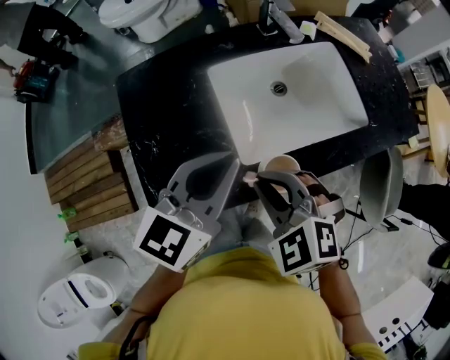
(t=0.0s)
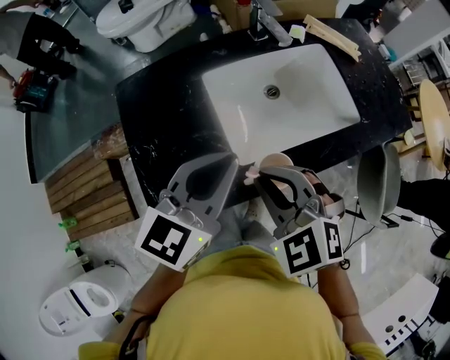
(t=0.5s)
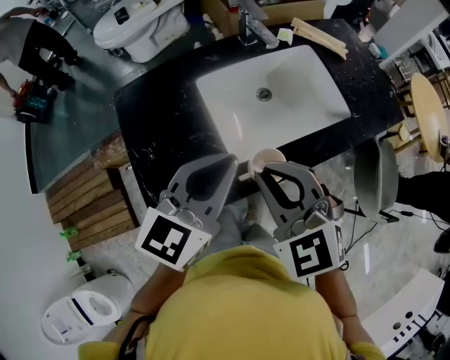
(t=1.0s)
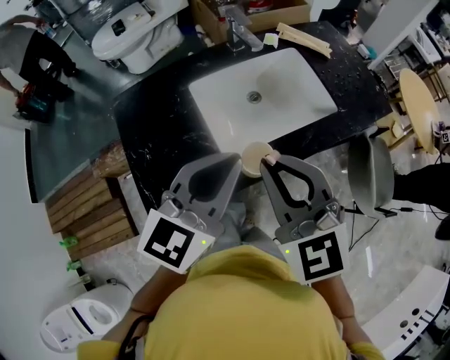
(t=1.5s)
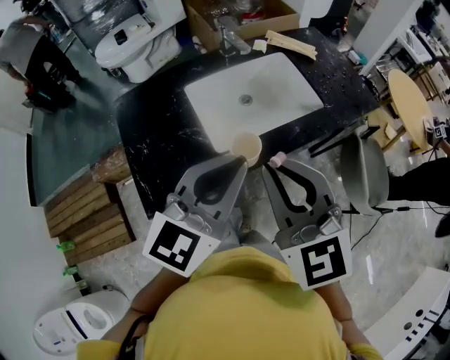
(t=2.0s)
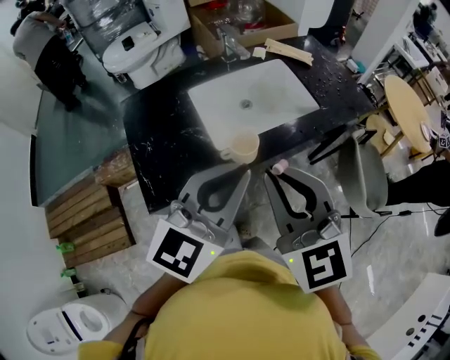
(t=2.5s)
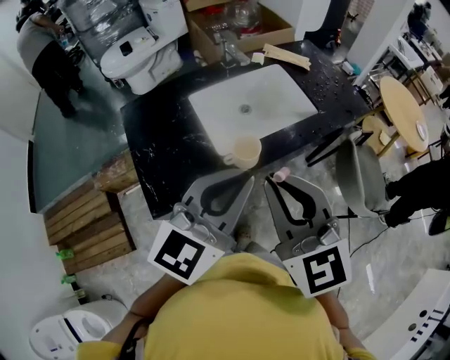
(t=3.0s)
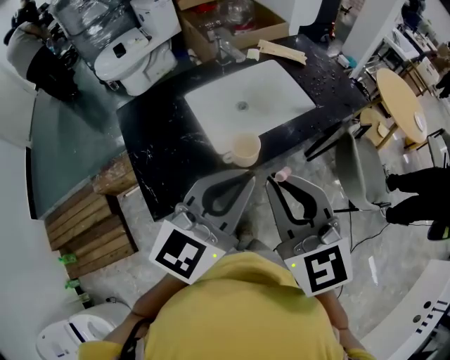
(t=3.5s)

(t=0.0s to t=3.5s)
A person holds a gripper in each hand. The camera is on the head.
t=0.0s - t=2.0s: The left gripper is displaced backward, upward and to the right by some 15 cm. The right gripper moves upward, to the right and backward, roughly 20 cm, and tilts its fingers approximately 40 degrees upward.
t=2.0s - t=3.5s: The left gripper ends up some 5 cm from where it was.

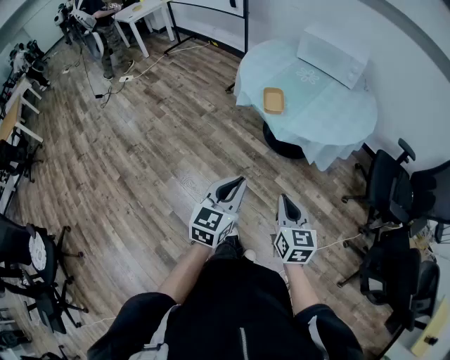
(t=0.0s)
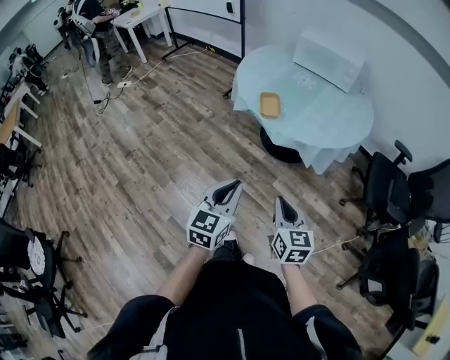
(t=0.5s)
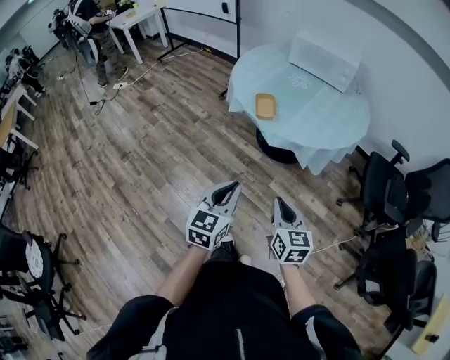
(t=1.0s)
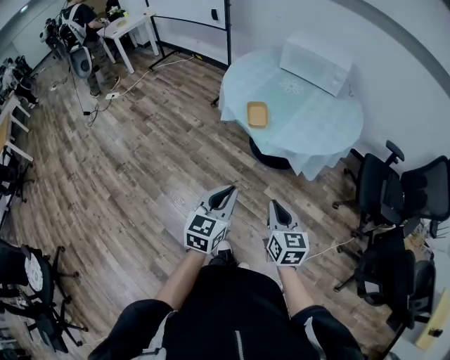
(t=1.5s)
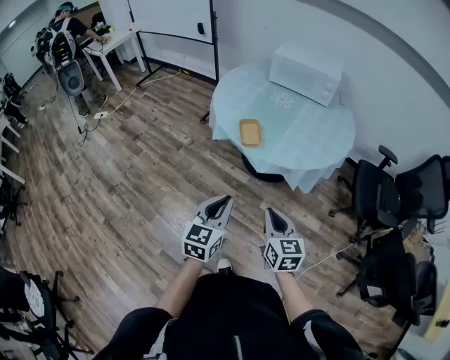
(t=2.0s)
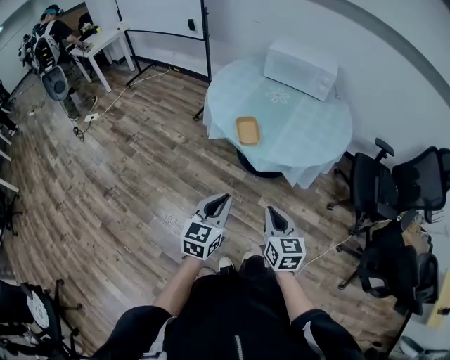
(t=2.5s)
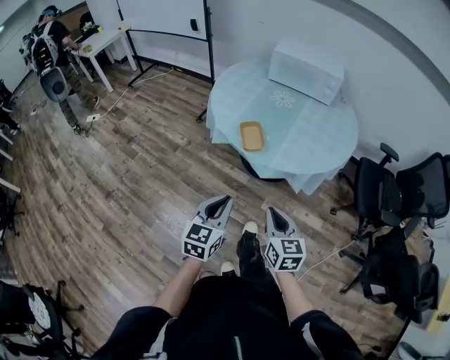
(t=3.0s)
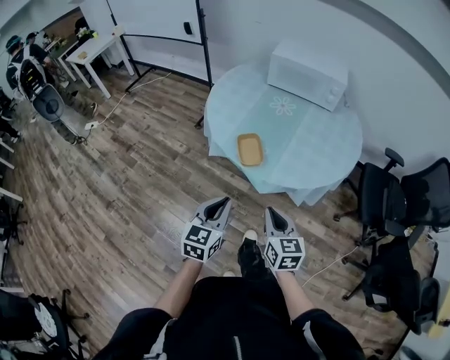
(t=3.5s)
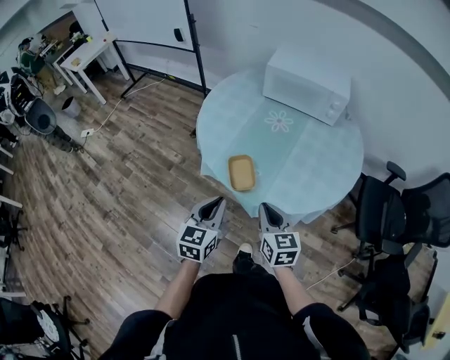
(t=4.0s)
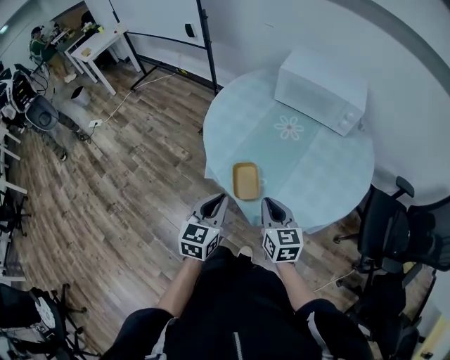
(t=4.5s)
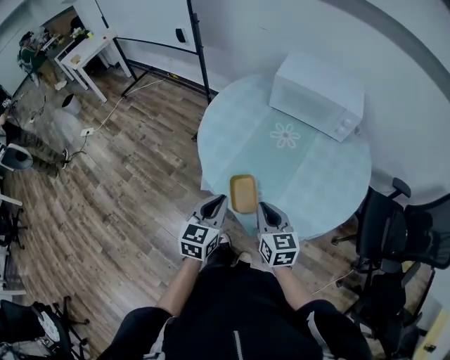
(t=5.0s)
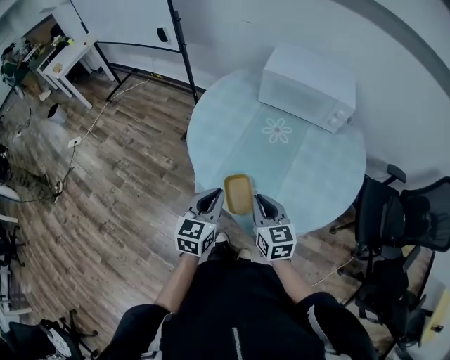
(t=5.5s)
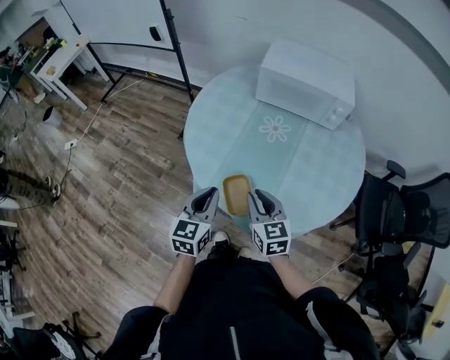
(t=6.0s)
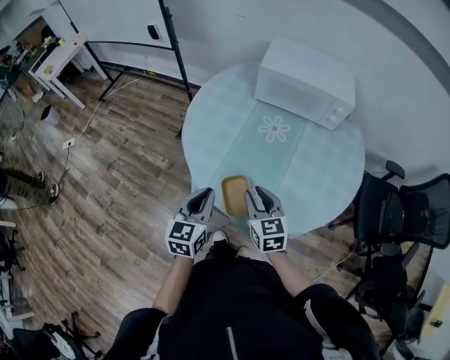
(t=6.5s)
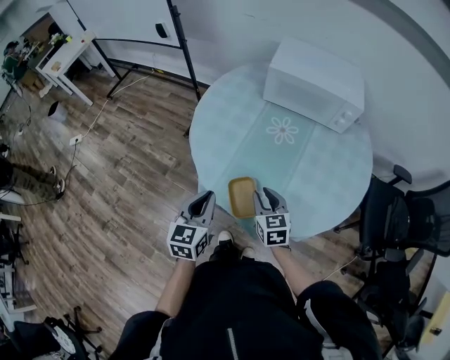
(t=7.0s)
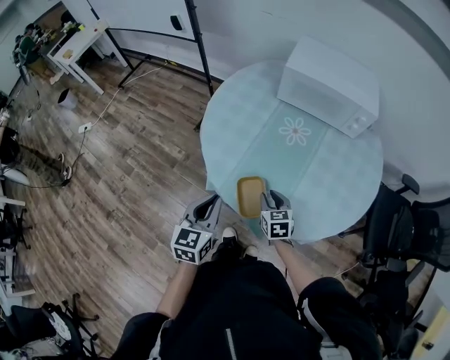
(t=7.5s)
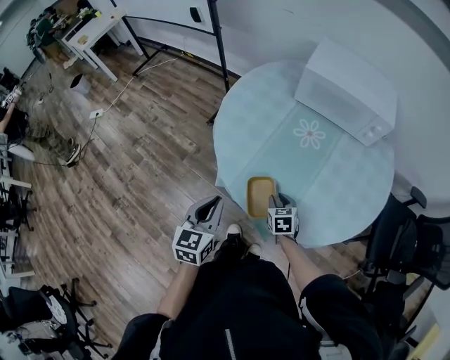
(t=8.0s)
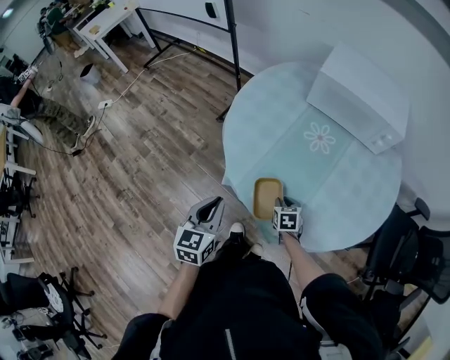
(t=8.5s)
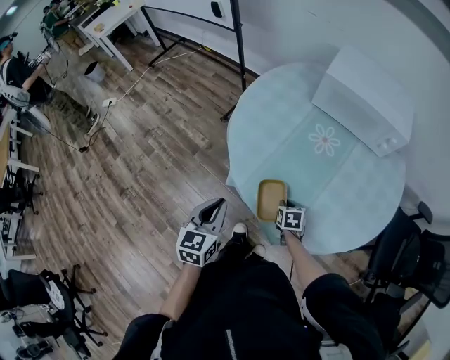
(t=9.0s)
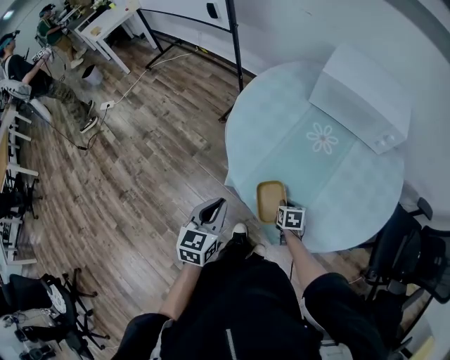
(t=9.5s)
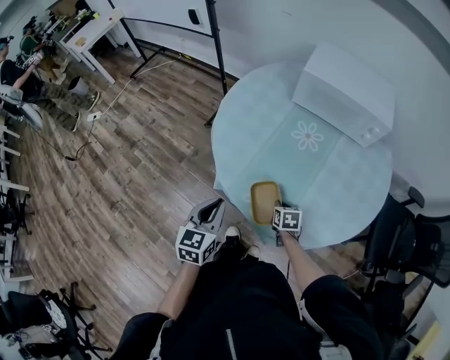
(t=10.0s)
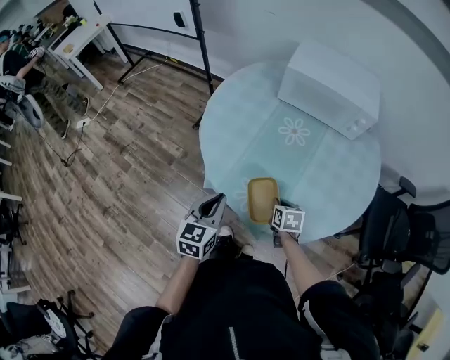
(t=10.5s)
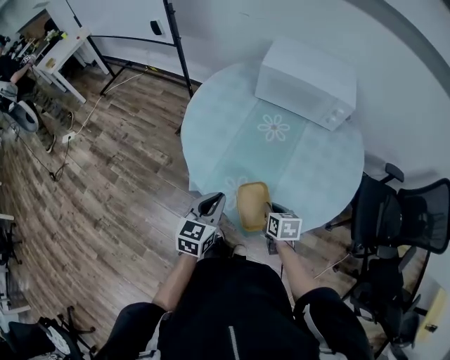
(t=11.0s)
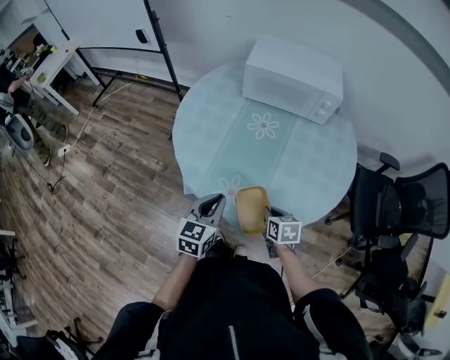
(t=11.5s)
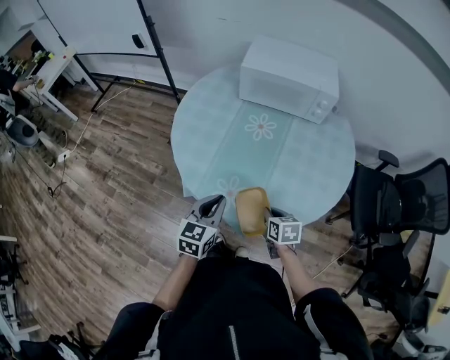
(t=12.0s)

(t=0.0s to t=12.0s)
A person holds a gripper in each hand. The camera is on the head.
t=0.0s - t=2.0s: Both grippers move forward, approximately 10 cm.
t=2.0s - t=4.0s: The grippers both shift forward by roughly 30 cm.
t=4.0s - t=6.0s: The grippers both shift forward by some 15 cm.
t=6.0s - t=8.0s: The right gripper travels downward by approximately 20 cm, and swivels approximately 30 degrees. Meanwhile the left gripper moves to the left, some 5 cm.
t=8.0s - t=10.0s: There are only small adjustments of the grippers.
t=10.0s - t=12.0s: The left gripper heads to the right, covering about 10 cm. The right gripper travels upward, backward and to the right by some 15 cm.

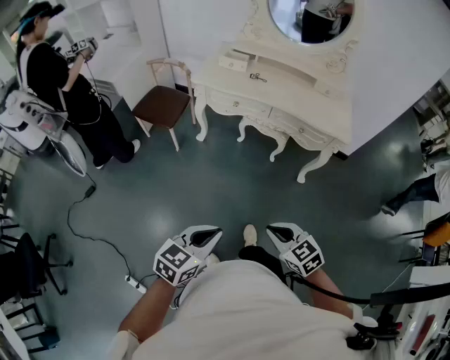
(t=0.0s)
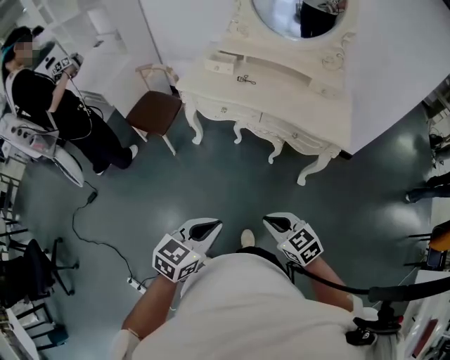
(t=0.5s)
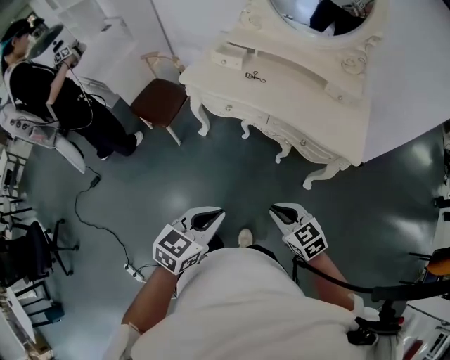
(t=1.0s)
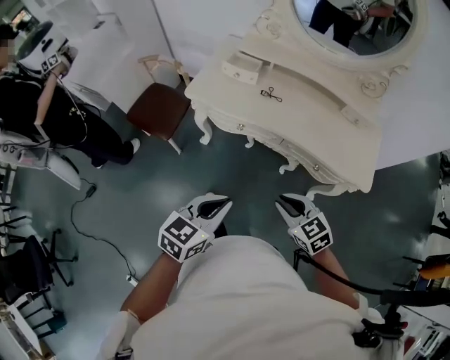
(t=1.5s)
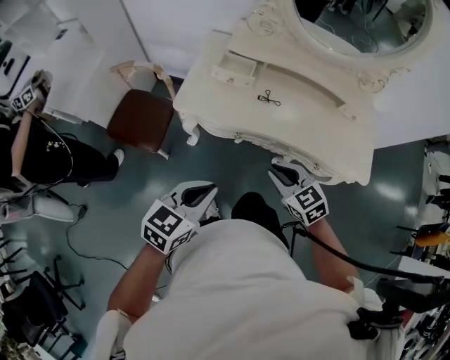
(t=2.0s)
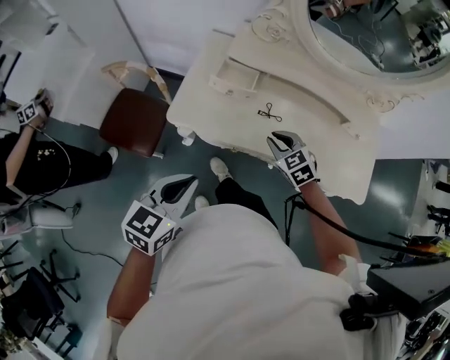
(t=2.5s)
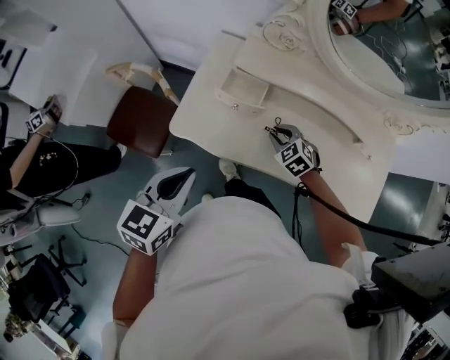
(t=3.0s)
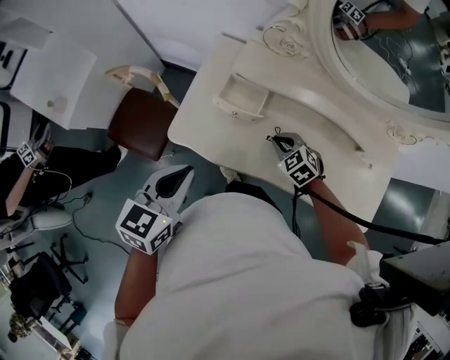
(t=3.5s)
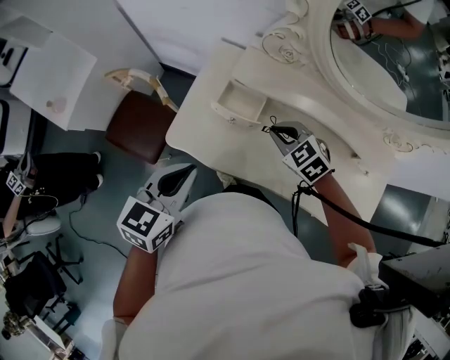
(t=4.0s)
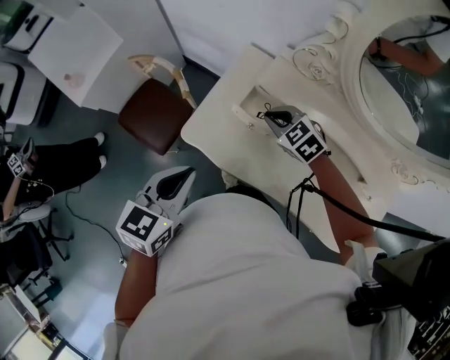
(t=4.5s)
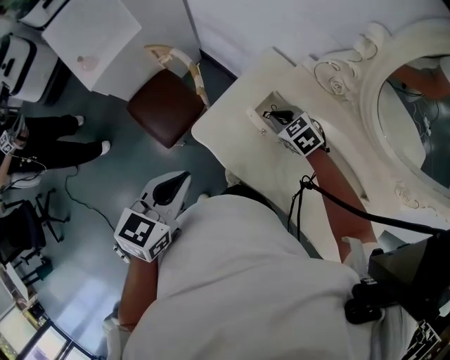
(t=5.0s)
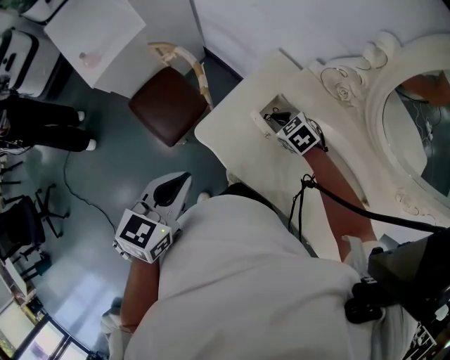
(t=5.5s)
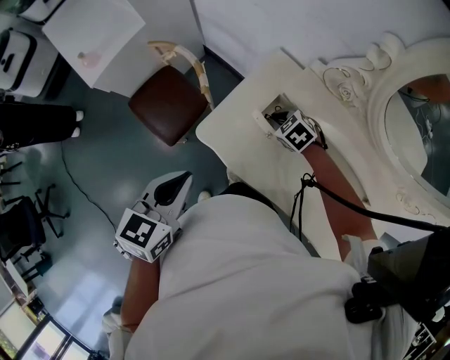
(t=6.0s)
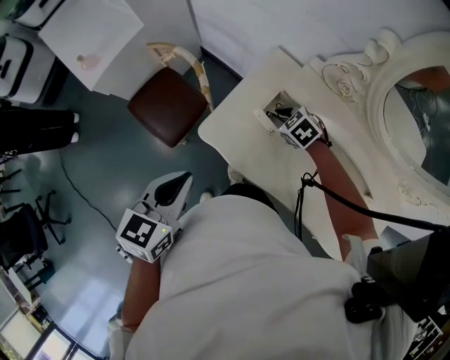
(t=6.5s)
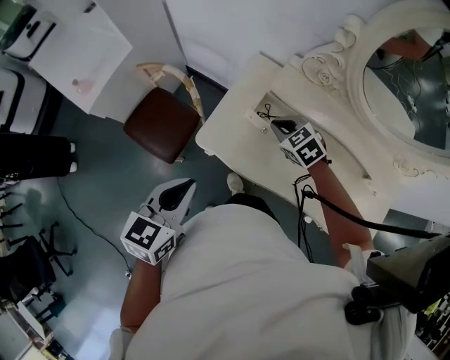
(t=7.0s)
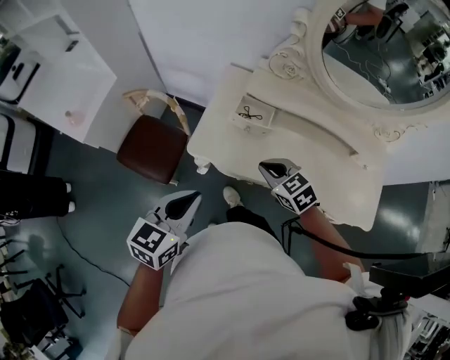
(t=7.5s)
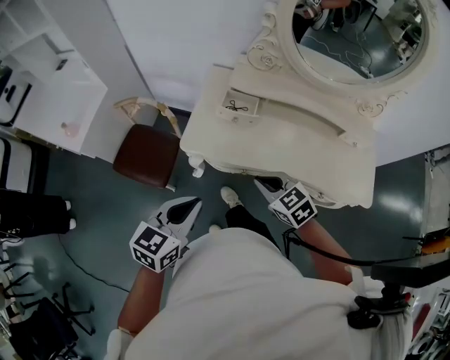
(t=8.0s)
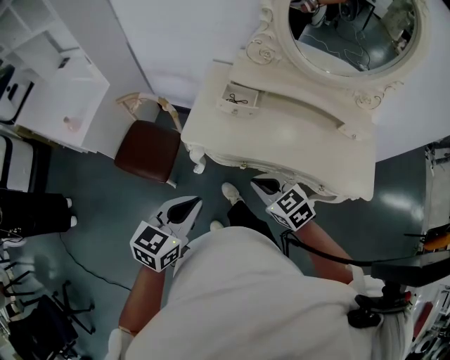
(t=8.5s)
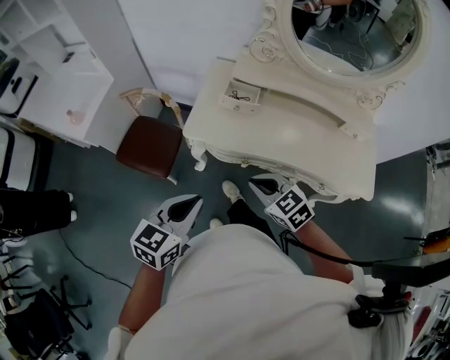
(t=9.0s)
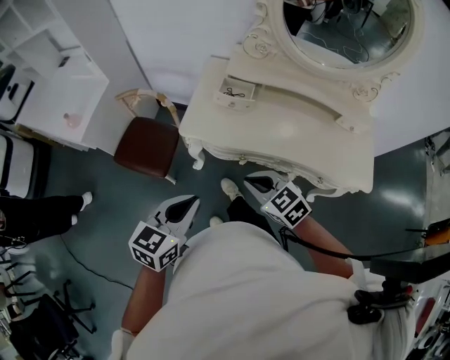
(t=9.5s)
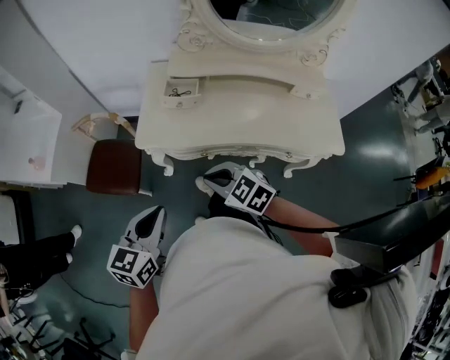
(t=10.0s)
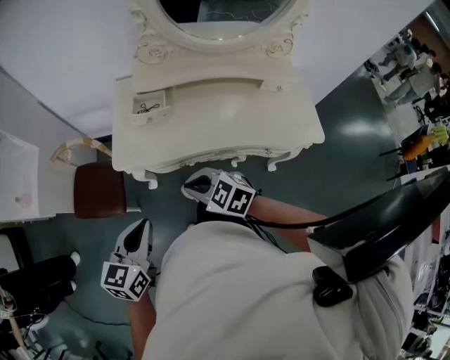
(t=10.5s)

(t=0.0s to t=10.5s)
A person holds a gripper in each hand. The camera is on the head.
t=0.0s - t=2.0s: Both grippers are carried forward, about 60 cm.
t=2.0s - t=4.0s: The grippers both shift forward by roughly 30 cm. The right gripper changes its angle by about 20 degrees.
t=4.0s - t=6.5s: The right gripper shifts about 20 cm forward, to the left and downward; the left gripper is displaced to the left by about 10 cm.
t=6.5s - t=8.5s: The left gripper shifts by about 20 cm, and changes its angle by approximately 30 degrees; the right gripper changes place by roughly 40 cm, and rotates about 40 degrees.
t=8.5s - t=10.5s: The grippers stay close to where they were, moving slightly.

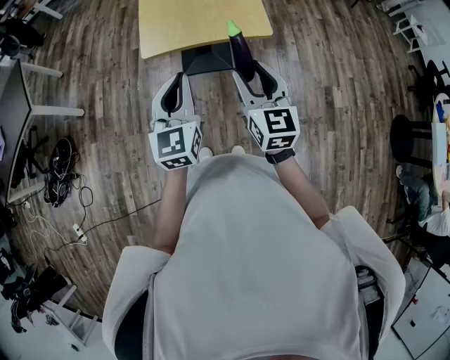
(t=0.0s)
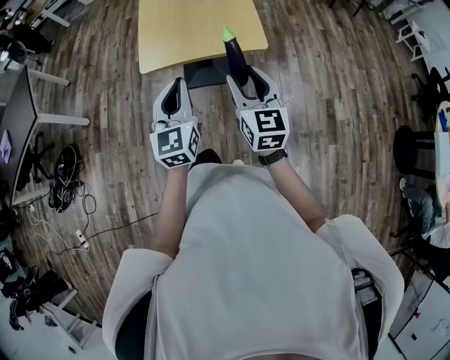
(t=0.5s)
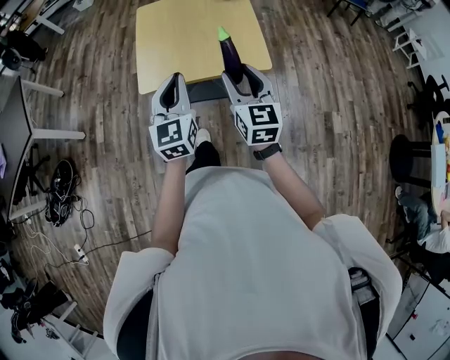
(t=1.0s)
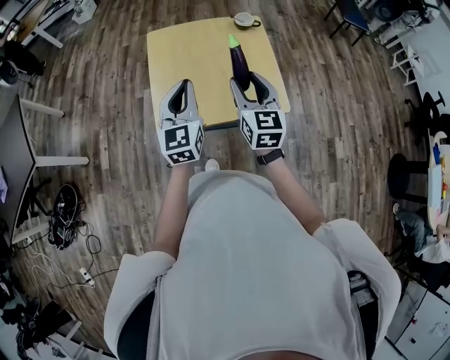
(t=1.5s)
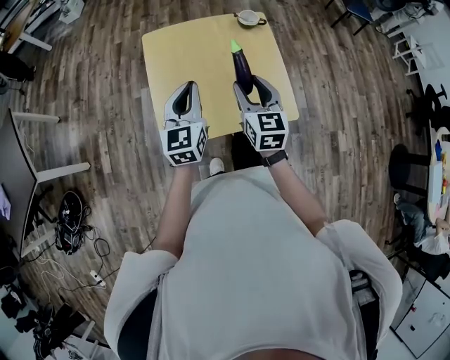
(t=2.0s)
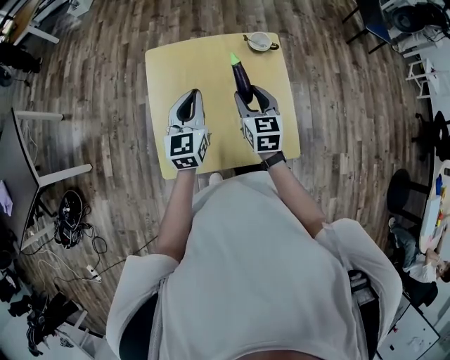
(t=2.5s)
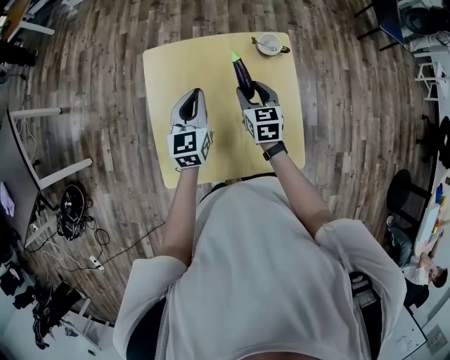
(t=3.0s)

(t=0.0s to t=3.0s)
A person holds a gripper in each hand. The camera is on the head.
t=0.0s - t=1.5s: The two grippers go roughly 30 cm forward.
t=1.5s - t=3.0s: The grippers both shift forward and downward by roughly 30 cm. The right gripper turns by about 20 degrees.
